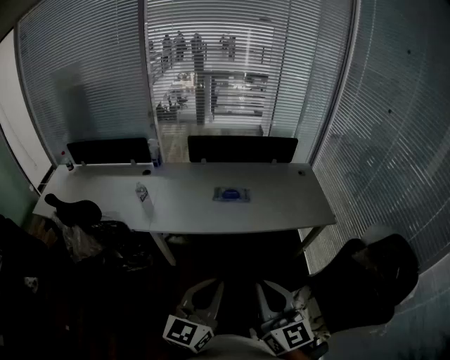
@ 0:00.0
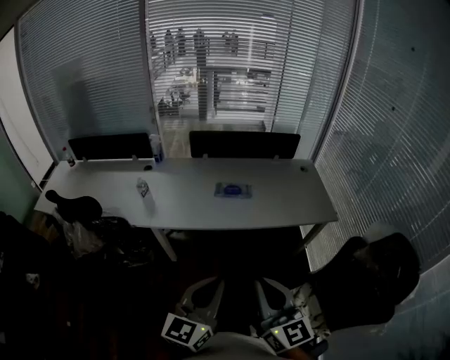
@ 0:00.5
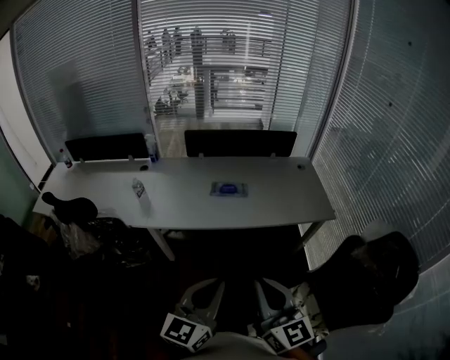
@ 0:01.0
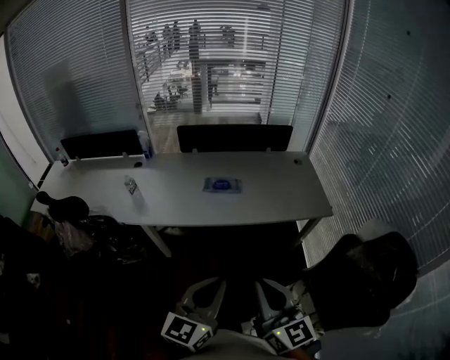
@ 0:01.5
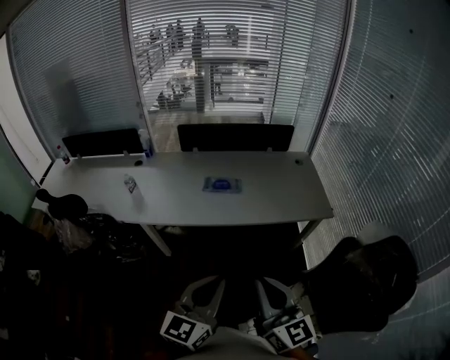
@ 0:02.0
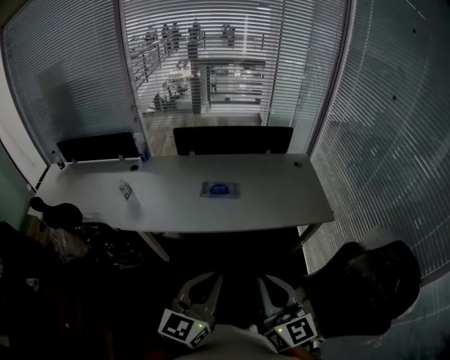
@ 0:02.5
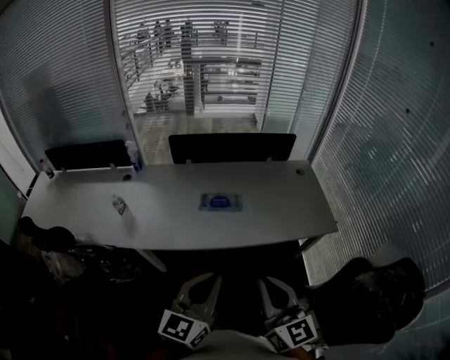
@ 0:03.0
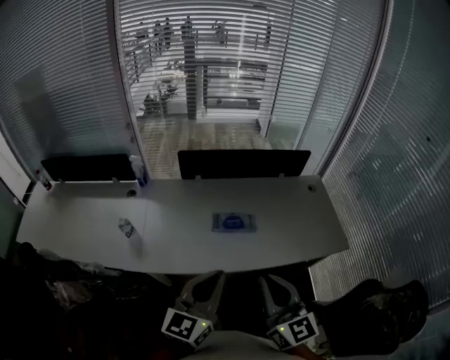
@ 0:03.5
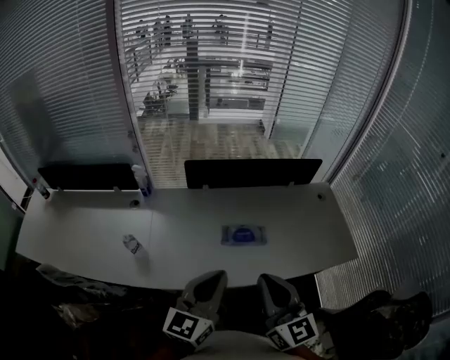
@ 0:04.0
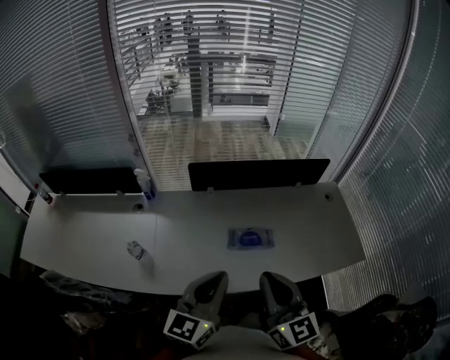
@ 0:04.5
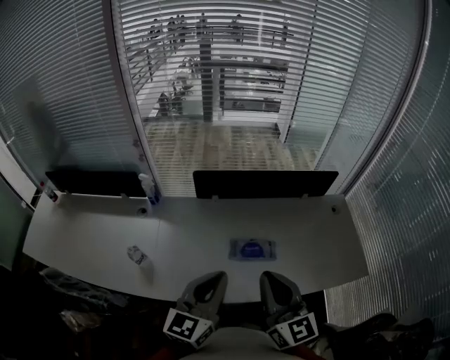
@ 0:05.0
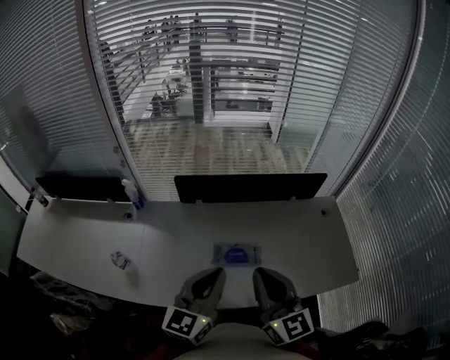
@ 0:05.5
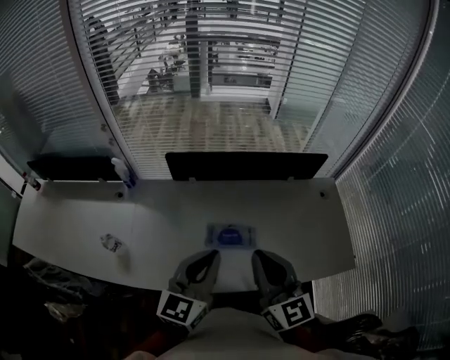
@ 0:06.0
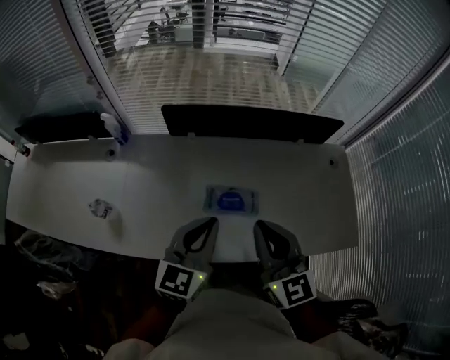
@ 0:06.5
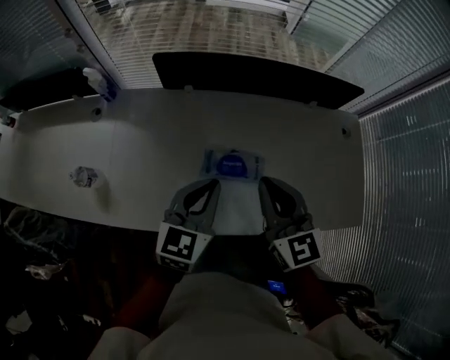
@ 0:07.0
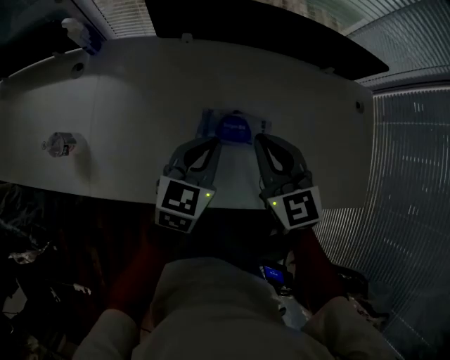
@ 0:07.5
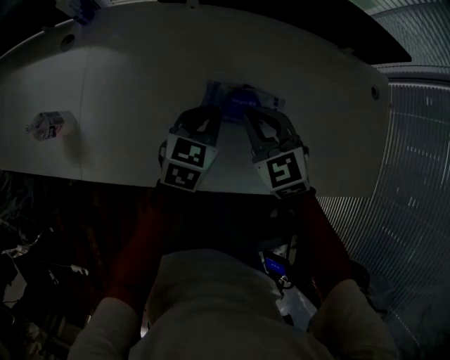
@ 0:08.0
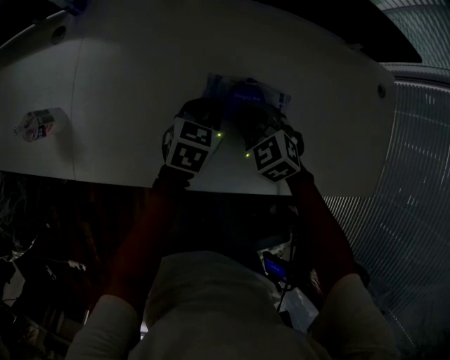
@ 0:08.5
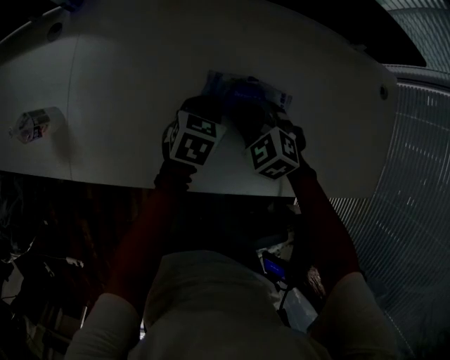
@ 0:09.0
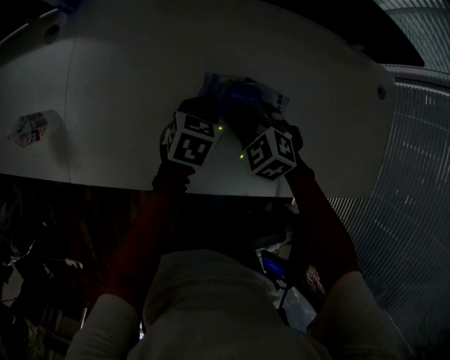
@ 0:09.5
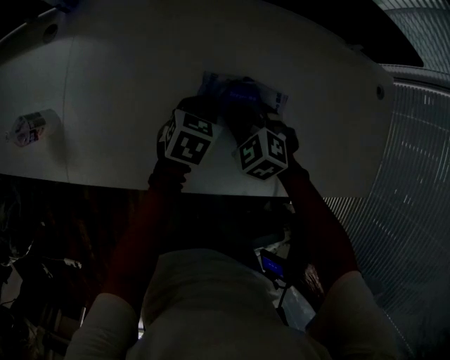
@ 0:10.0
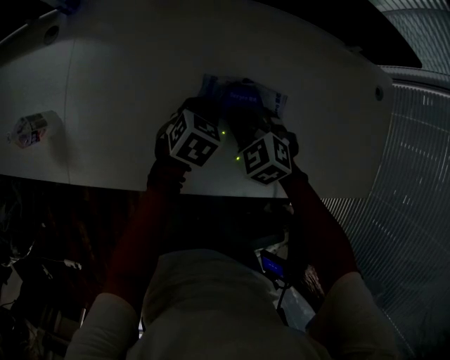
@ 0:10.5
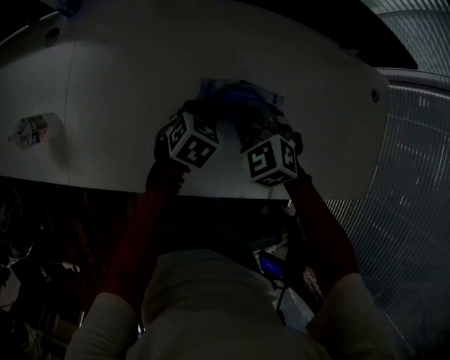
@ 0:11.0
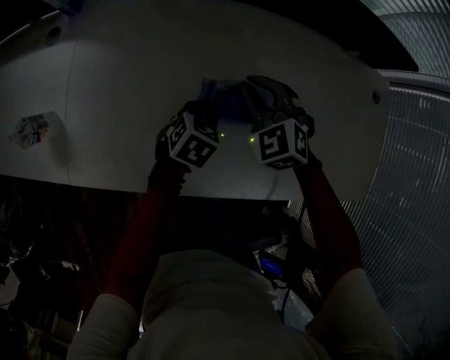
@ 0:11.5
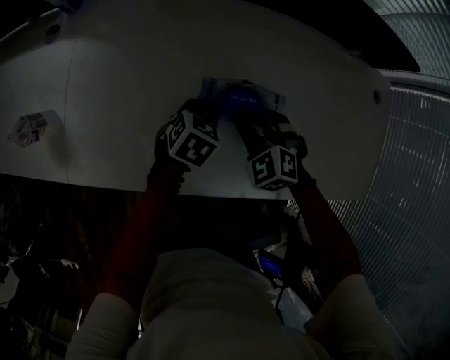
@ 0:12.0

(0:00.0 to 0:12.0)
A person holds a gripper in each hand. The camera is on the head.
0:00.0 - 0:02.0: The two grippers go roughly 10 cm to the right.
0:02.0 - 0:04.0: The grippers both shift forward and to the left by about 35 cm.
0:04.0 - 0:06.0: The grippers both shift forward and to the right by about 15 cm.
0:06.0 - 0:08.0: The grippers both shift downward by roughly 35 cm. The left gripper angles its fingers downward, by some 30 degrees; the right gripper tilts its fingers some 40 degrees downward.
0:08.0 - 0:10.0: The left gripper is displaced downward by about 10 cm, while the right gripper moves downward, roughly 15 cm, turns by approximately 30 degrees, and opens.
0:10.0 - 0:12.0: The right gripper goes upward and returns, about 10 cm each way.

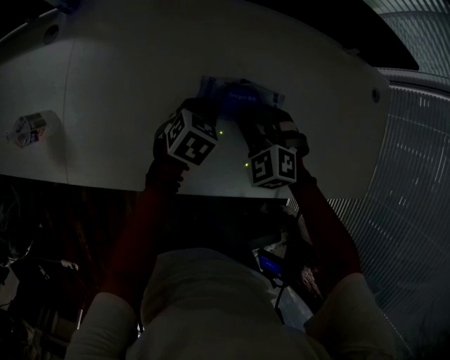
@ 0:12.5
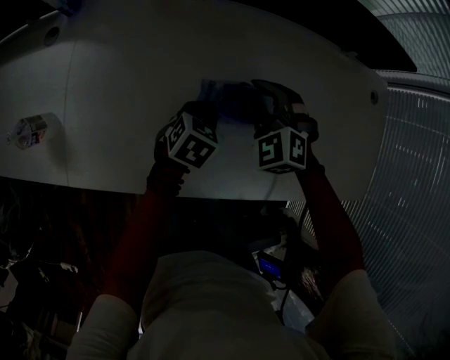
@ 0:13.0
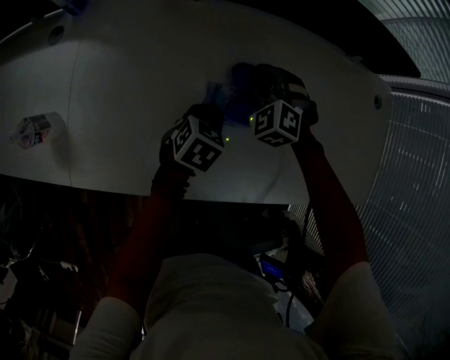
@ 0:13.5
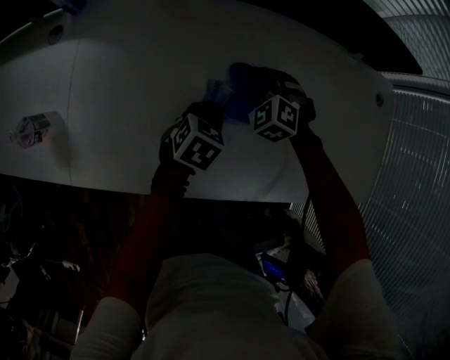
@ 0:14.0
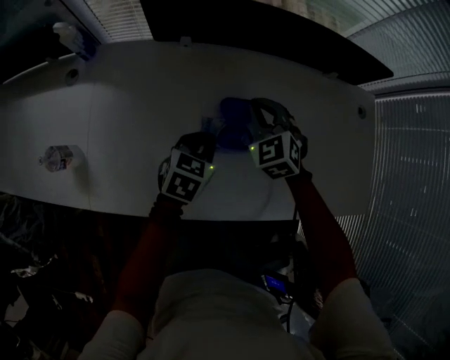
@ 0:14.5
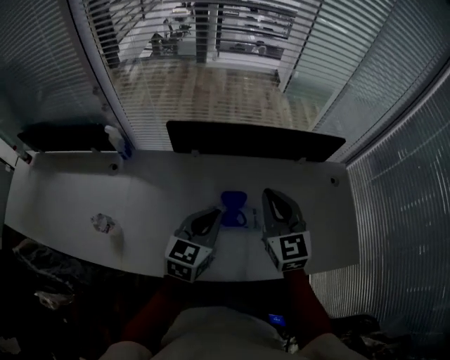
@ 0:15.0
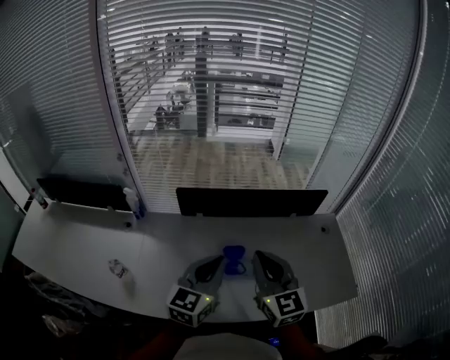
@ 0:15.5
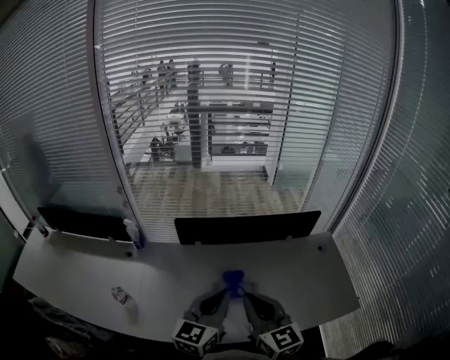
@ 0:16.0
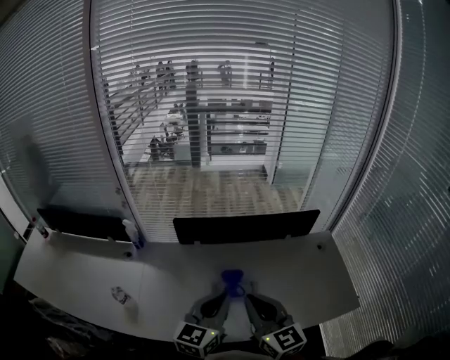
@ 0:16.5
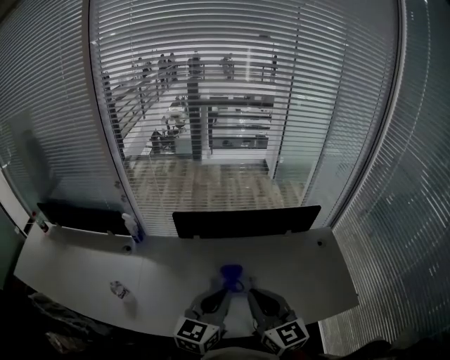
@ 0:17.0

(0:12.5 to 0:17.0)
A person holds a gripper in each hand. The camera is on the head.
0:12.5 - 0:14.5: The right gripper swings up and down, about 15 cm each way, with 2 reversals, rotates some 20 degrees, and closes its fingers; the left gripper goes some 10 cm upward.
0:14.5 - 0:17.0: The right gripper shifts some 35 cm upward and backward, and tips its fingers upward by roughly 40 degrees. Meanwhile the left gripper heads upward, covering some 30 cm, and tips its fingers upward by roughly 40 degrees.

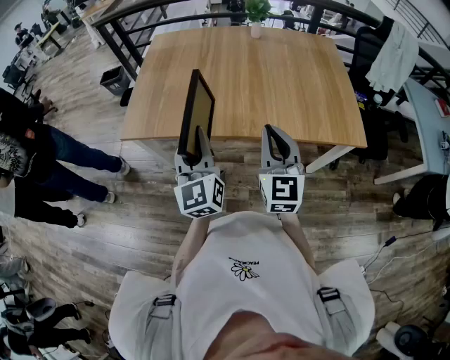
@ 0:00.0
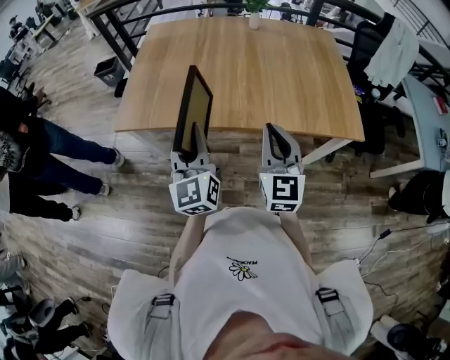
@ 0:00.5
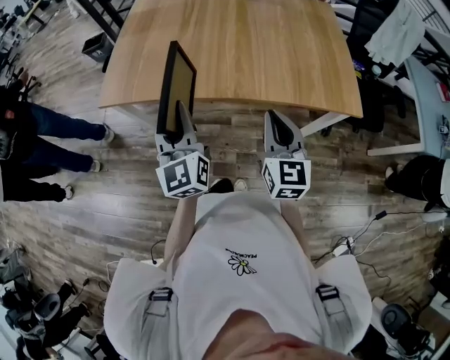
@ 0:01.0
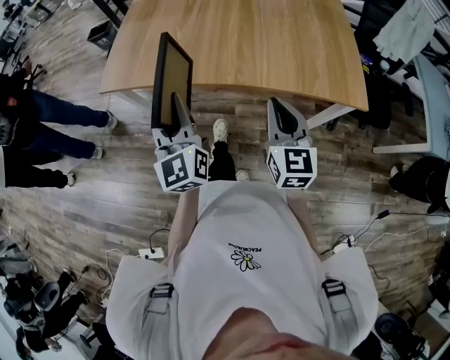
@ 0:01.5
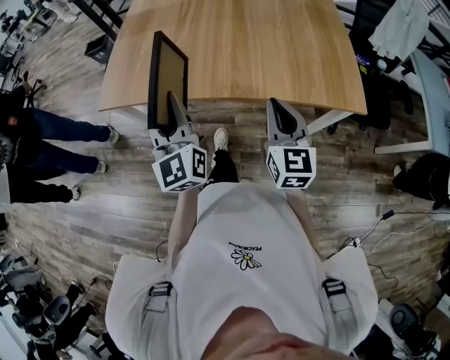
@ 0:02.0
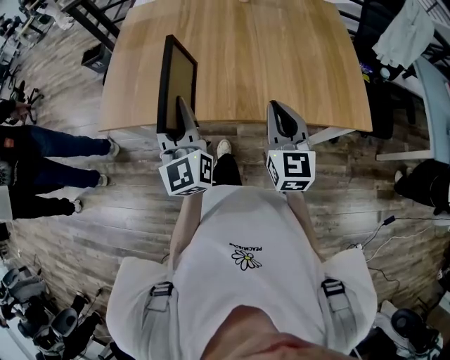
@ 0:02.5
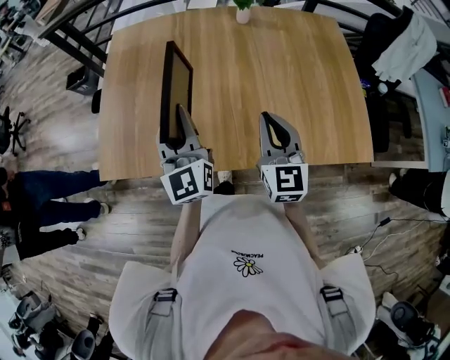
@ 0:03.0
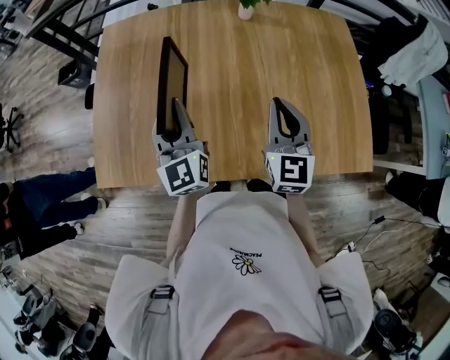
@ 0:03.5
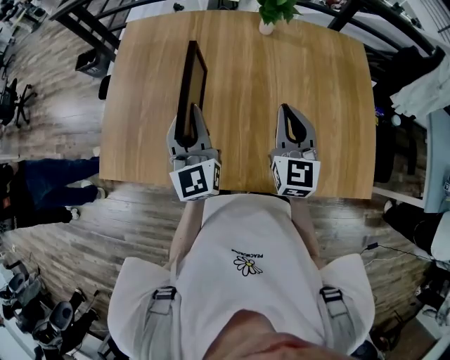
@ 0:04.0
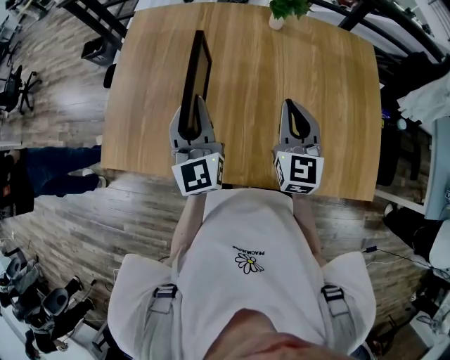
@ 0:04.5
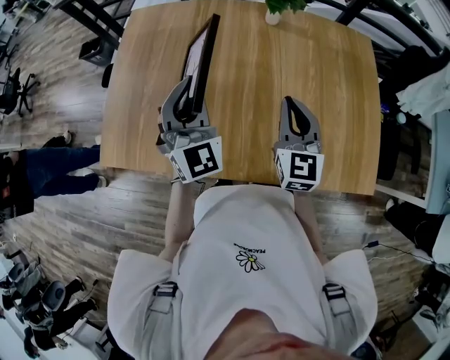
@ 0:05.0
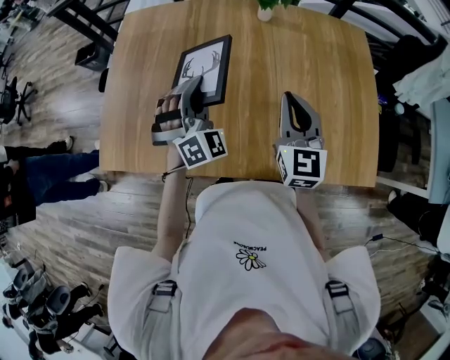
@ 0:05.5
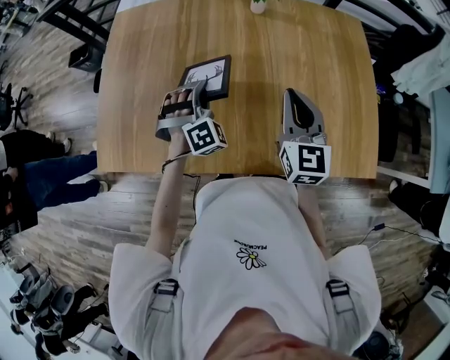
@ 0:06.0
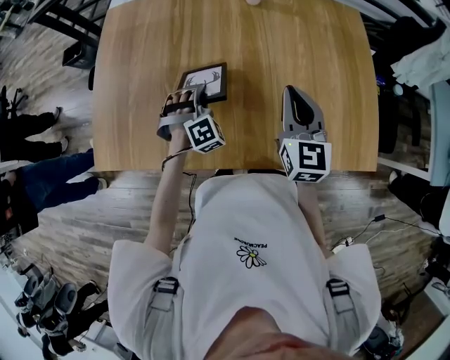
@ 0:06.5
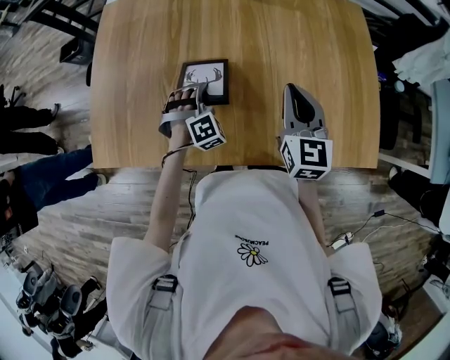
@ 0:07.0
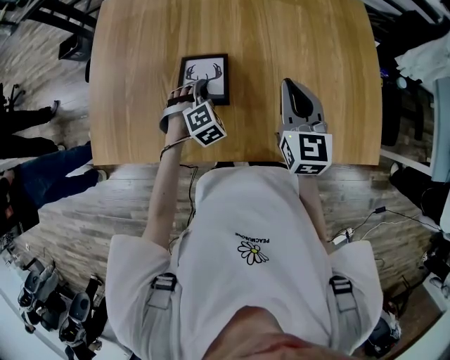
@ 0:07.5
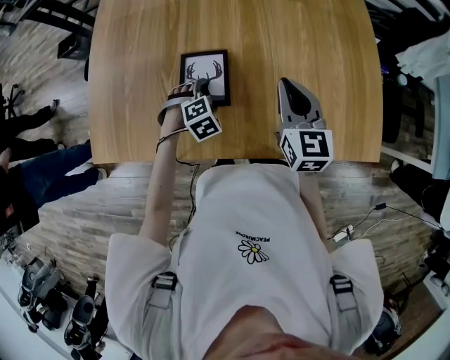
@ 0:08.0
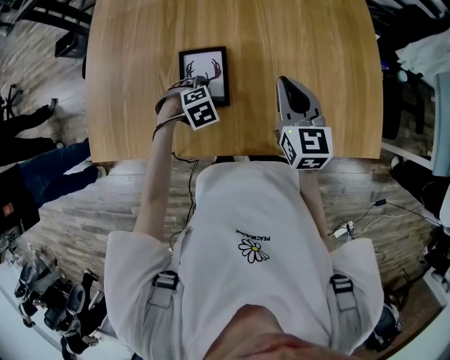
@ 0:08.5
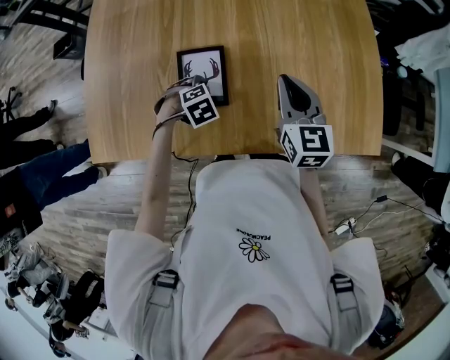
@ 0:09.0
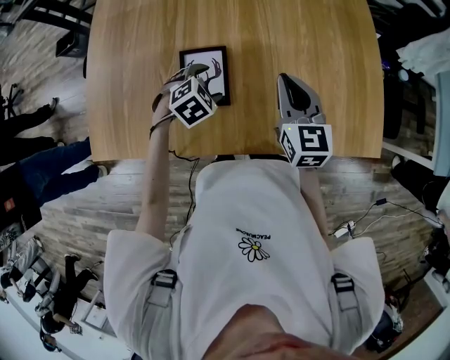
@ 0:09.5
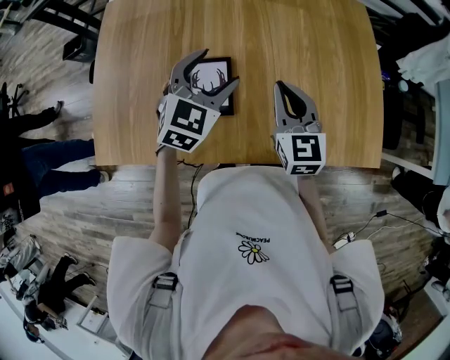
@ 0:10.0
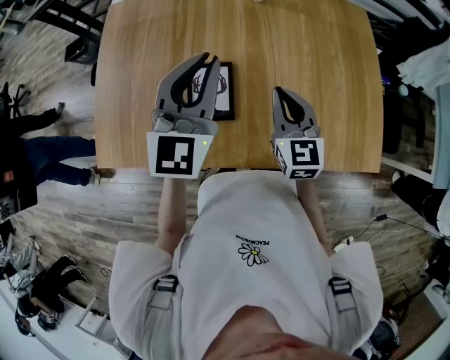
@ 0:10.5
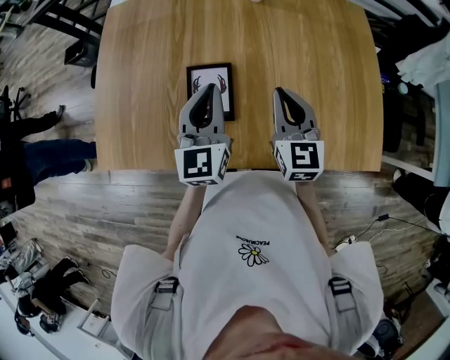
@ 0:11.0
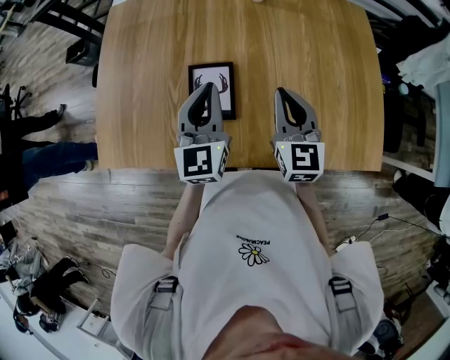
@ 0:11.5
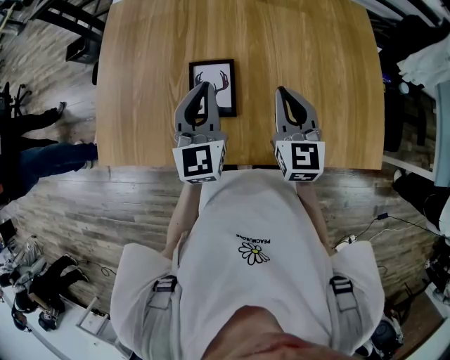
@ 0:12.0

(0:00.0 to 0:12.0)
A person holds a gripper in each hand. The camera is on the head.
0:00.0 - 0:02.0: The right gripper moves to the right and downward, roughly 10 cm.
0:02.0 - 0:04.0: Both grippers move forward, about 30 cm.
0:04.0 - 0:06.0: The left gripper heads downward and to the right, covering roughly 15 cm, and twists some 70 degrees clockwise, seen from behind.
0:06.0 - 0:08.0: The left gripper heads downward and backward, covering about 15 cm, tips its fingers downward by roughly 40 degrees, and opens up.
0:08.0 - 0:10.0: The left gripper is displaced upward by some 20 cm, and tips its fingers upward by approximately 40 degrees.
0:10.0 - 0:12.0: The left gripper is displaced to the left by some 5 cm, moves some 15 cm upward and comes back, turns by about 40 degrees, and closes up.
